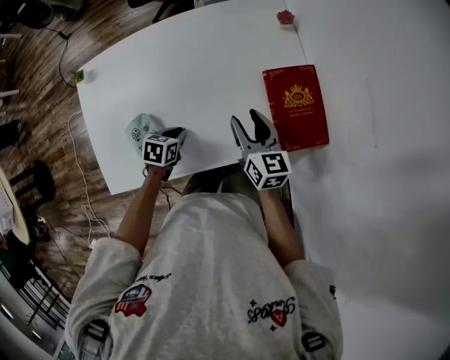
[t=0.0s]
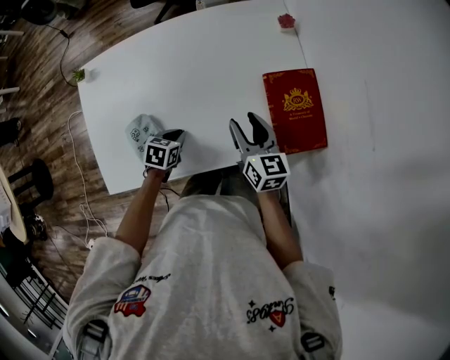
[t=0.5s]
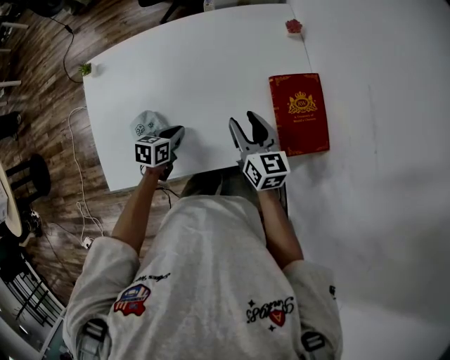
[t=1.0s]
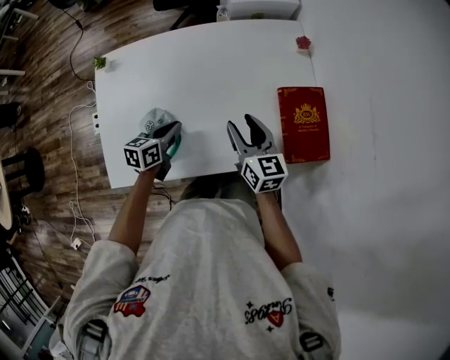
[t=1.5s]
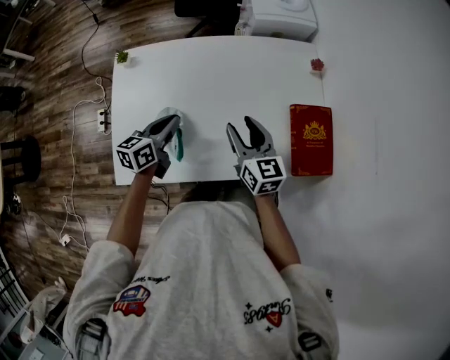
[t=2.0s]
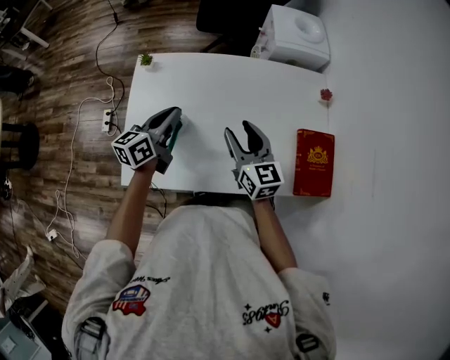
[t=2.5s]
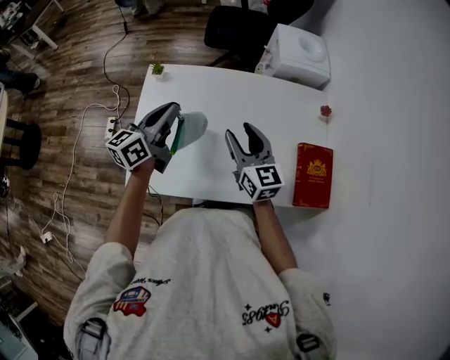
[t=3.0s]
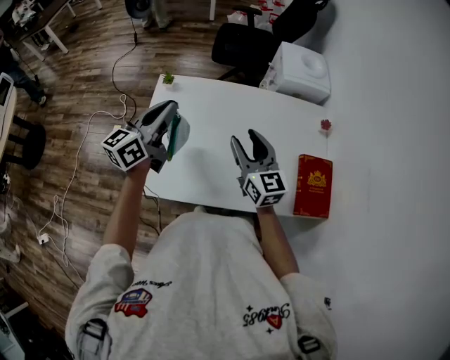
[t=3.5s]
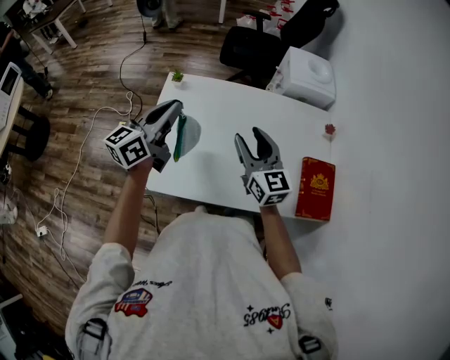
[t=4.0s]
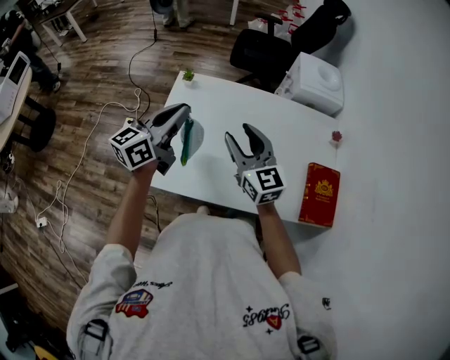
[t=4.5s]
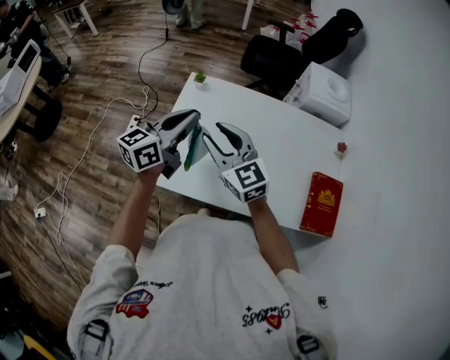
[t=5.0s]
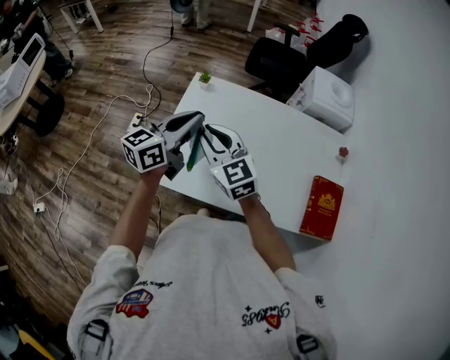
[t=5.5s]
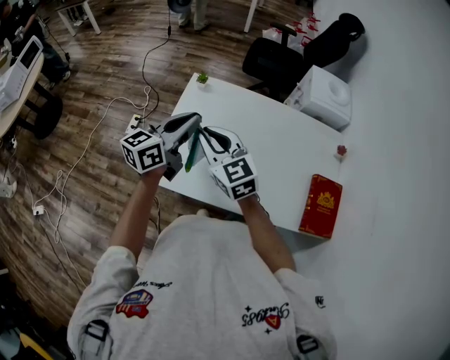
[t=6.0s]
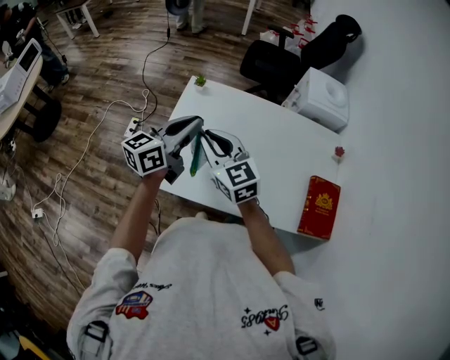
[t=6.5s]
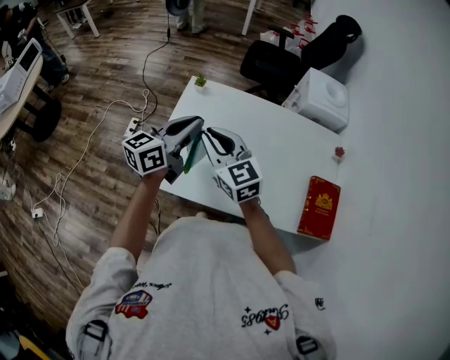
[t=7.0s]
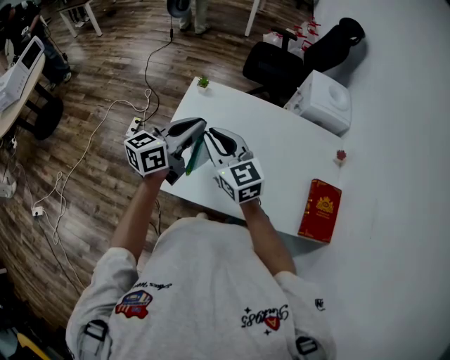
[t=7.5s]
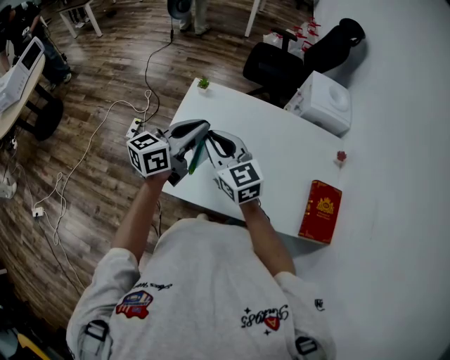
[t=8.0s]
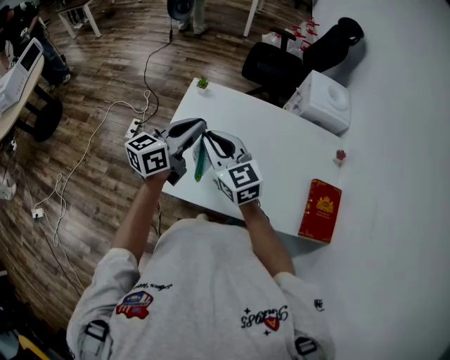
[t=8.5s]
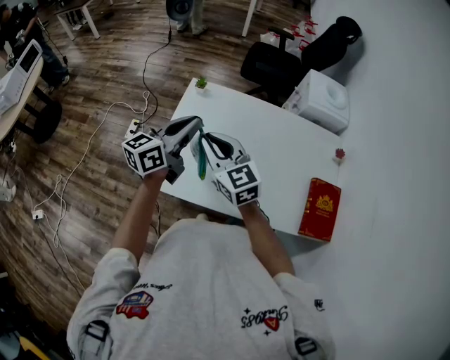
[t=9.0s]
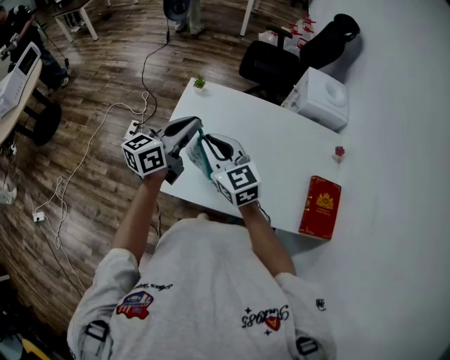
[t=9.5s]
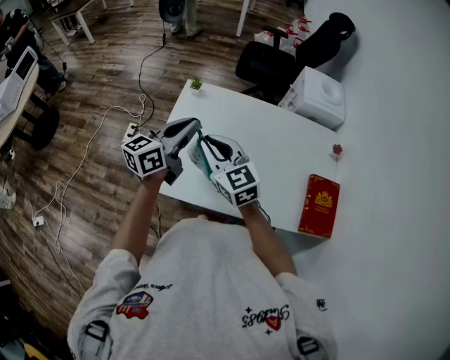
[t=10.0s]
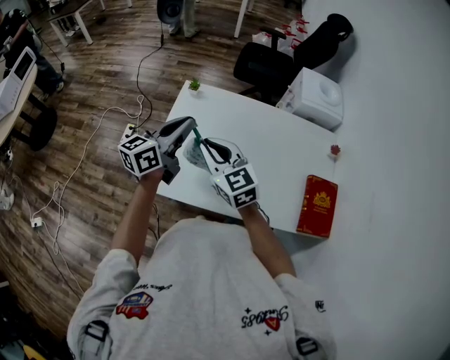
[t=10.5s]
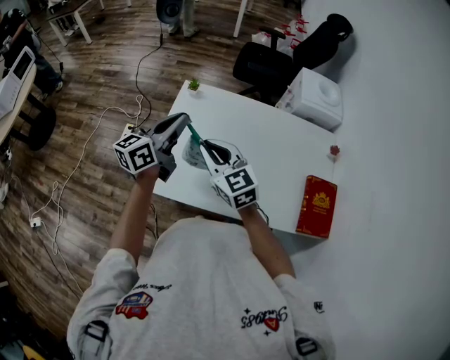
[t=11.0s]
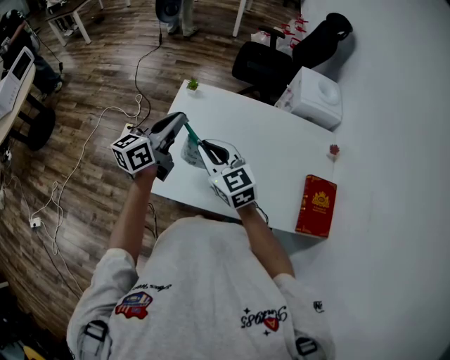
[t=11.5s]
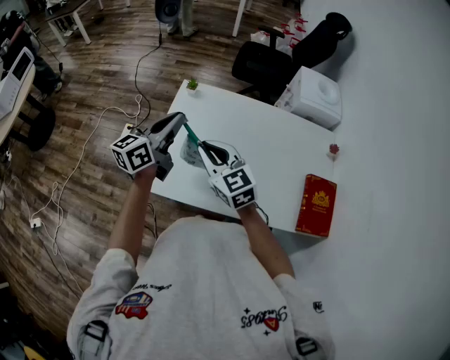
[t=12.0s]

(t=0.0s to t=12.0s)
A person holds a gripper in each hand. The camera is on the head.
t=0.0s - t=2.0s: The left gripper shifts approximately 20 cm upward and to the left, and angles its fingers upward, by about 40 degrees. The right gripper moves to the left and upward, some 15 cm.
t=2.0s - t=4.0s: Both grippers move upward and to the left, about 20 cm. The right gripper changes its angle by approximately 20 degrees; the left gripper swivels roughly 30 degrees.
t=4.0s - t=6.0s: The right gripper shifts about 20 cm to the left, changes its angle by about 30 degrees, and closes its fingers.
t=6.0s - t=12.0s: The grippers make only small movements.

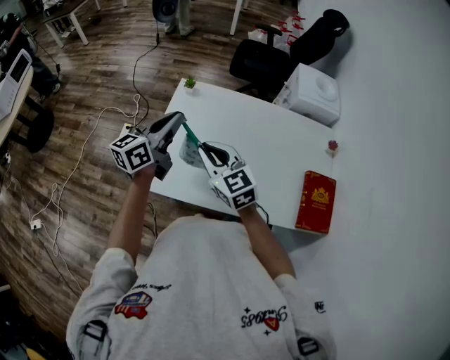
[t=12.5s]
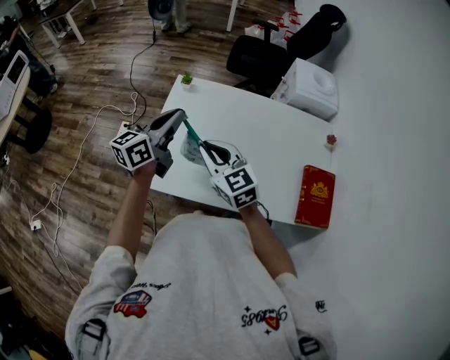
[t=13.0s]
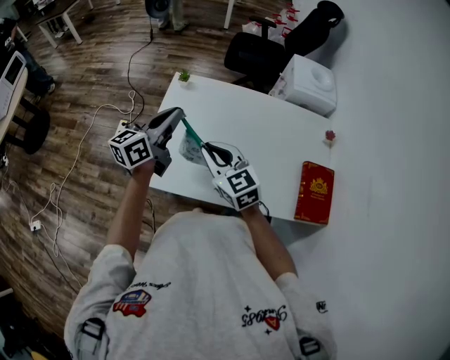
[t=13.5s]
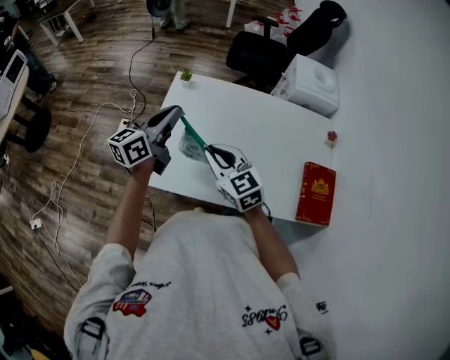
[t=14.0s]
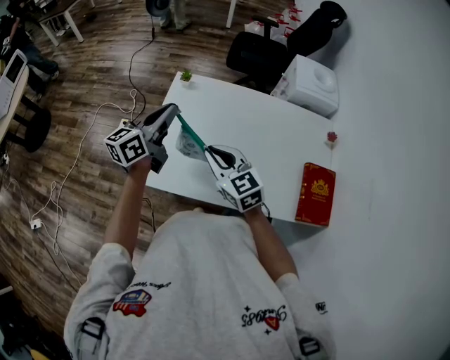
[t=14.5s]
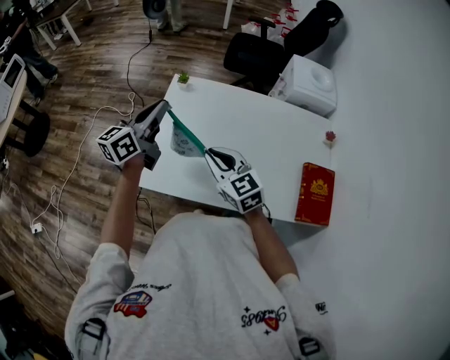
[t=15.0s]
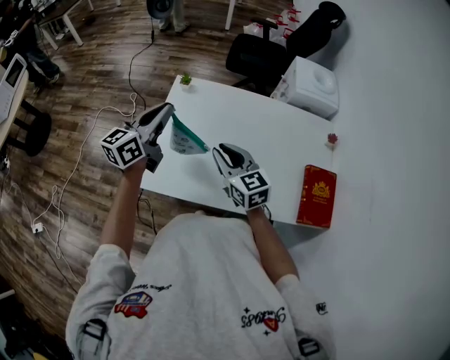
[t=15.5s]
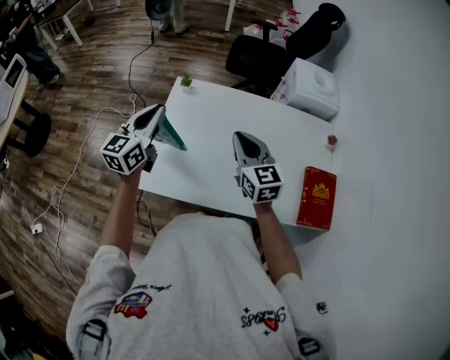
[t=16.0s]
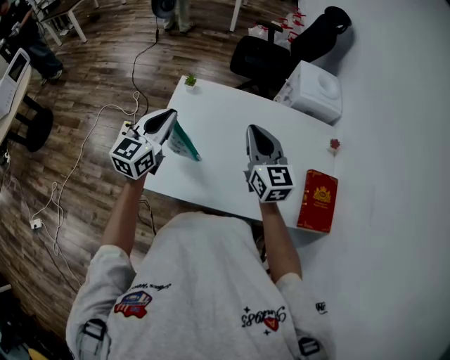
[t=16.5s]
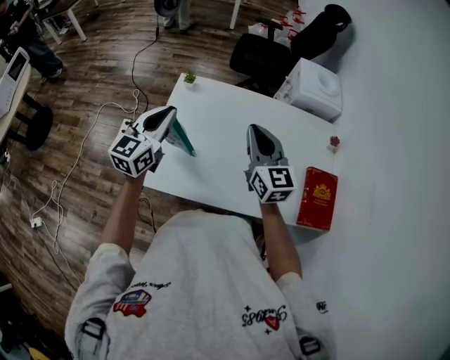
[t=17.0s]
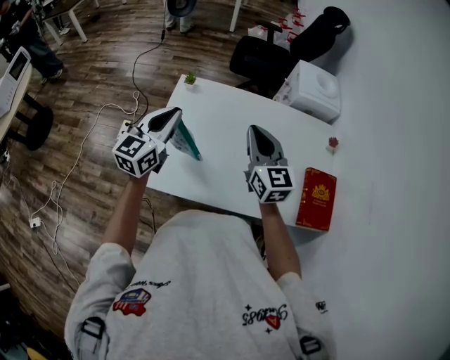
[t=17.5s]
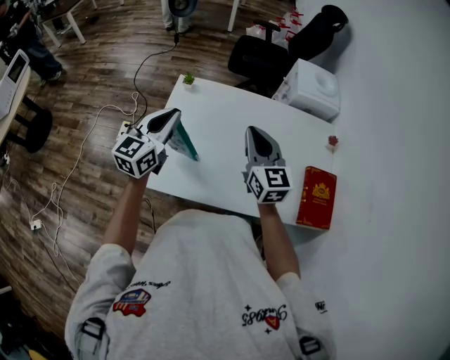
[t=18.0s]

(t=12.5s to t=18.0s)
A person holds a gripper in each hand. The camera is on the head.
t=12.5s - t=14.5s: The grippers move only a little.
t=14.5s - t=16.0s: The right gripper travels to the right and forward by roughly 10 cm; the left gripper changes its angle by approximately 20 degrees.
t=16.0s - t=18.0s: The grippers move only a little.

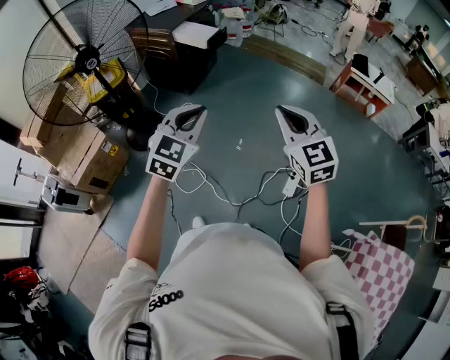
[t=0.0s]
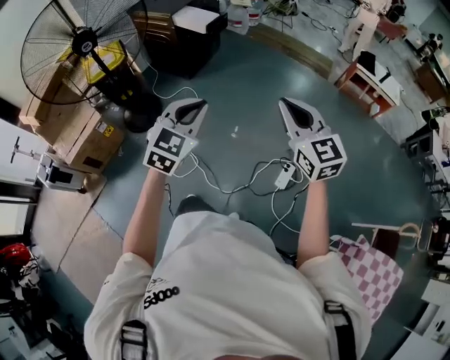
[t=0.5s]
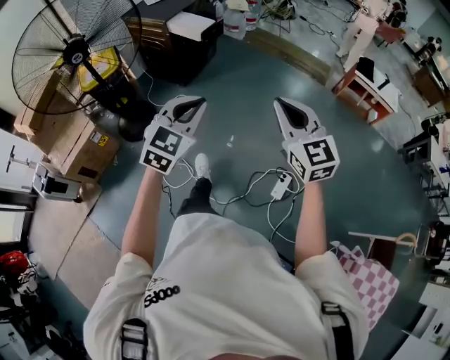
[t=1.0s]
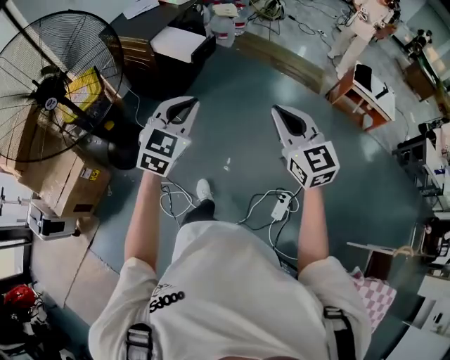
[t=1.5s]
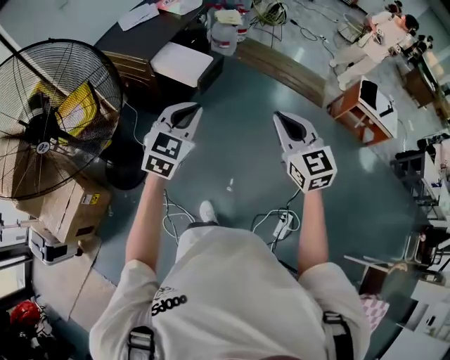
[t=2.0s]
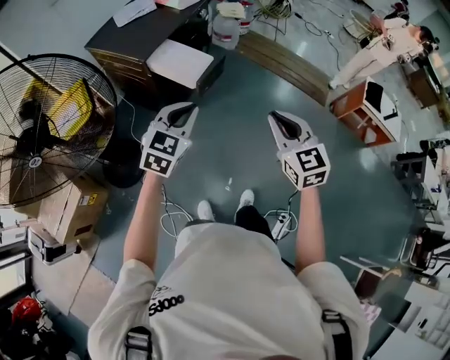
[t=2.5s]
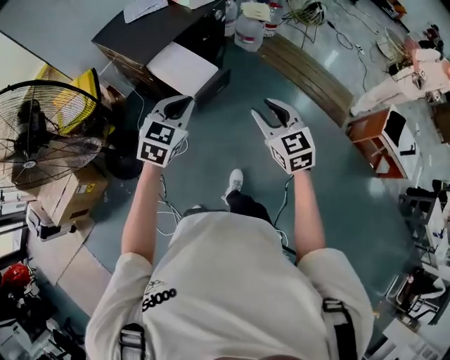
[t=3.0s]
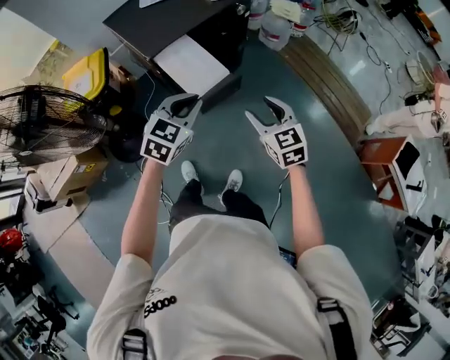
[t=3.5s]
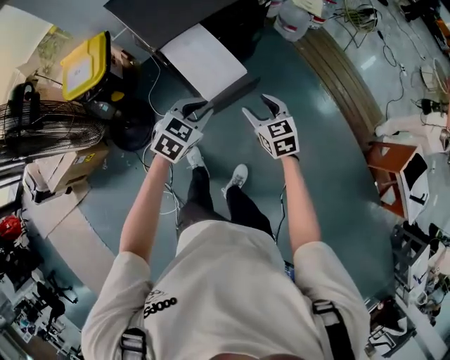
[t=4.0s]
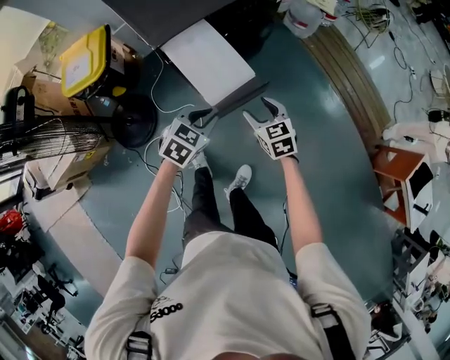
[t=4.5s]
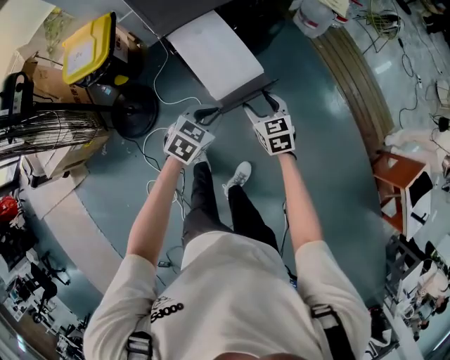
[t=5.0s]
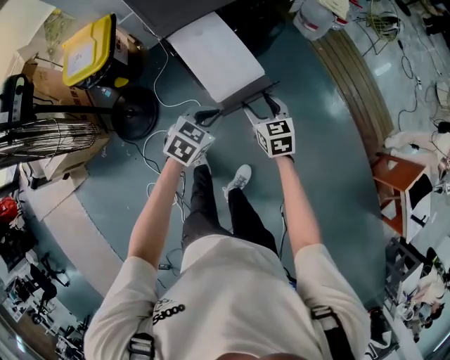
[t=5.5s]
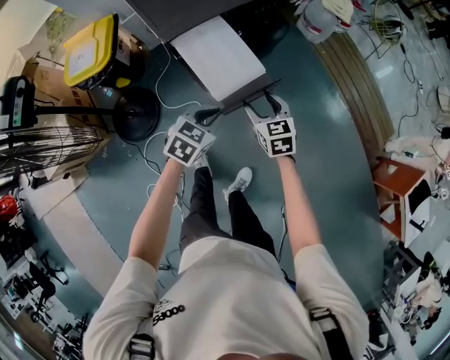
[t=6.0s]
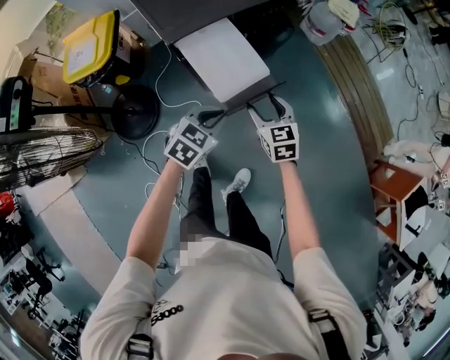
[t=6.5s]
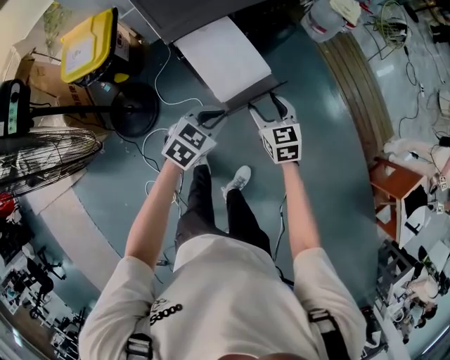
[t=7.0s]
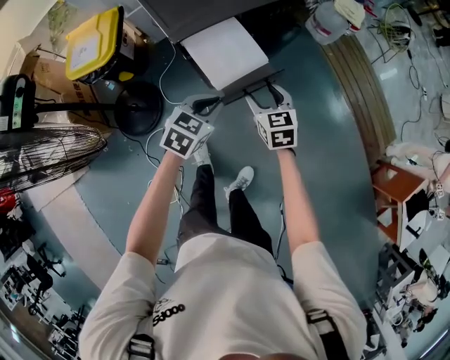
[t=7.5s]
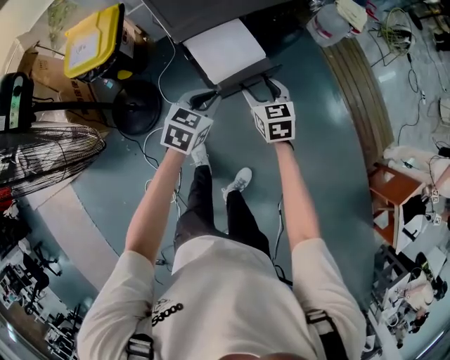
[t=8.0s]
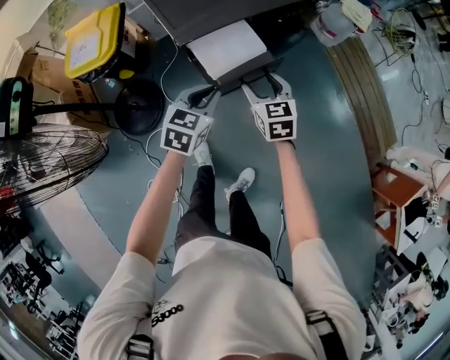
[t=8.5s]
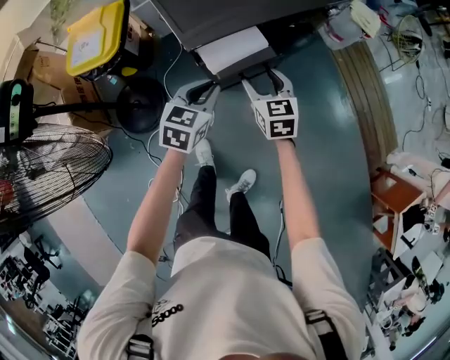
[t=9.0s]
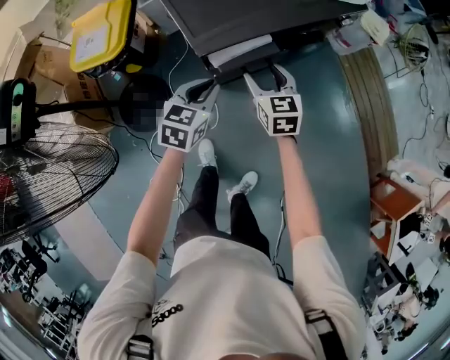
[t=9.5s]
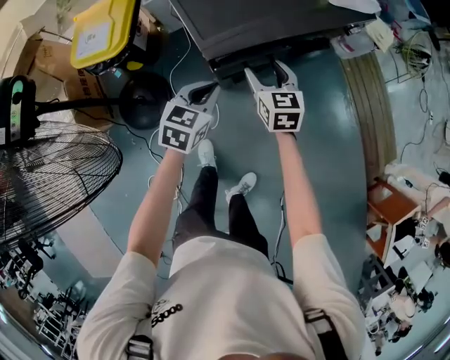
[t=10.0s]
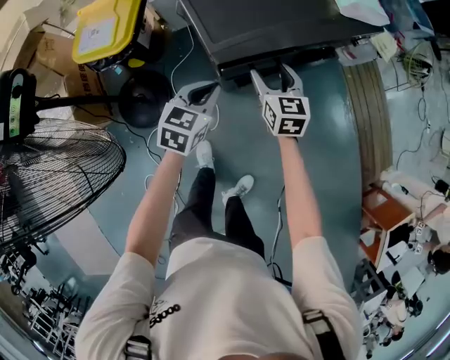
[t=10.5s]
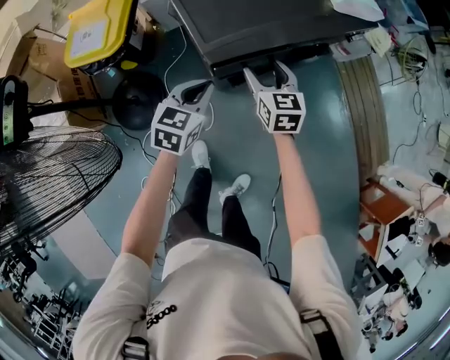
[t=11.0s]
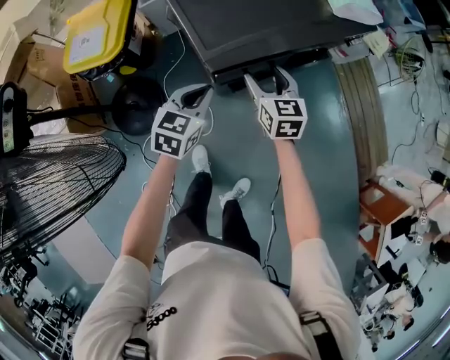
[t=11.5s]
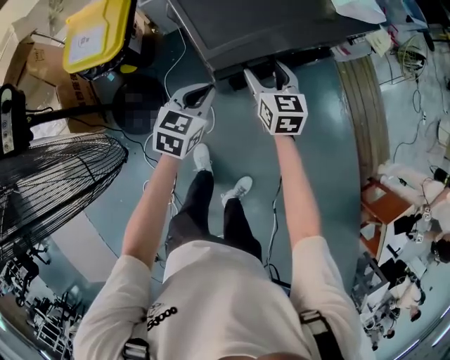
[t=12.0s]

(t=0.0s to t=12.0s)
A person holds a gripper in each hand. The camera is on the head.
t=0.0s - t=2.0s: The pair of grippers is taken forward, about 50 cm.
t=2.0s - t=4.0s: Both grippers travel together forward and downward, roughly 40 cm. The left gripper turns by about 30 degrees. Meanwhile the right gripper changes its angle by some 30 degrees, and opens its fingers.
t=4.0s - t=6.0s: The left gripper travels downward by some 10 cm; the right gripper heads downward and forward, covering about 10 cm.
t=6.0s - t=8.0s: The two grippers go about 10 cm forward and to the left.
t=8.0s - t=10.0s: The grippers both shift forward and to the left by about 15 cm.
t=10.0s - t=12.0s: There are only small adjustments of the grippers.
